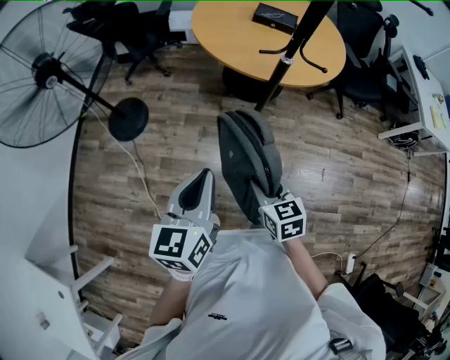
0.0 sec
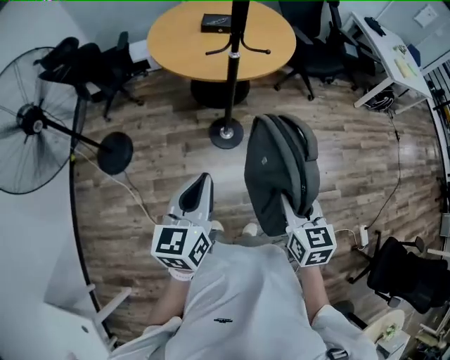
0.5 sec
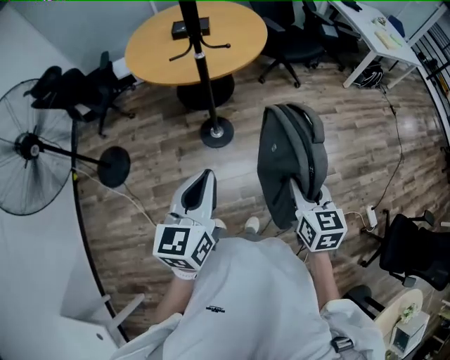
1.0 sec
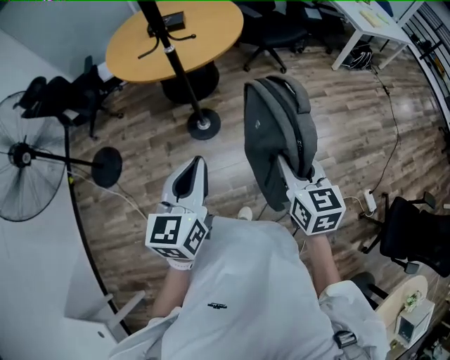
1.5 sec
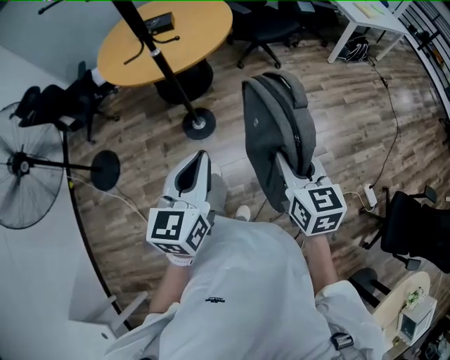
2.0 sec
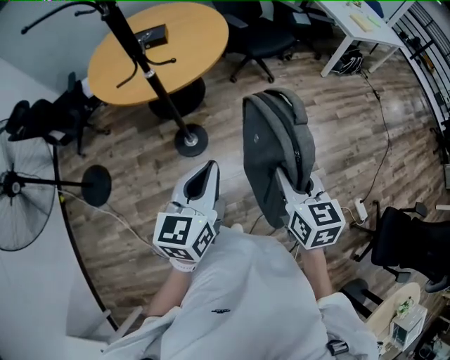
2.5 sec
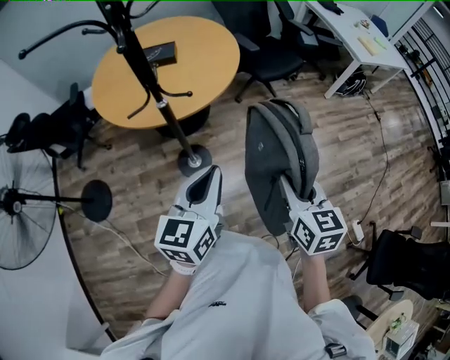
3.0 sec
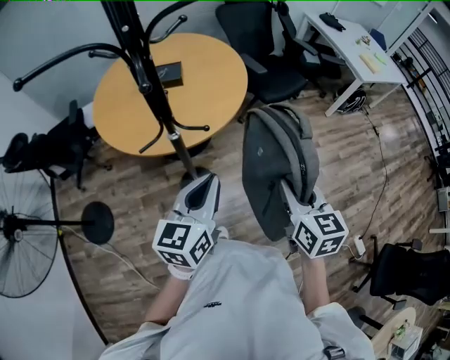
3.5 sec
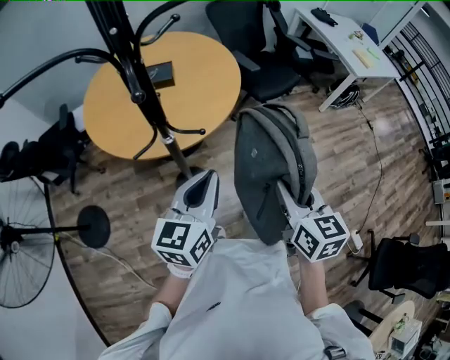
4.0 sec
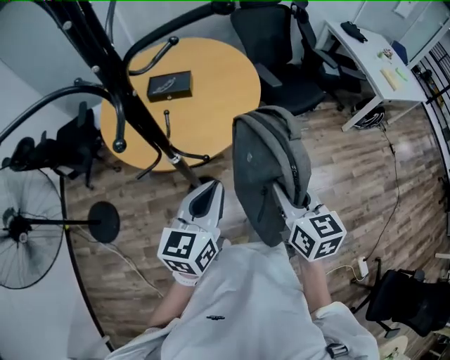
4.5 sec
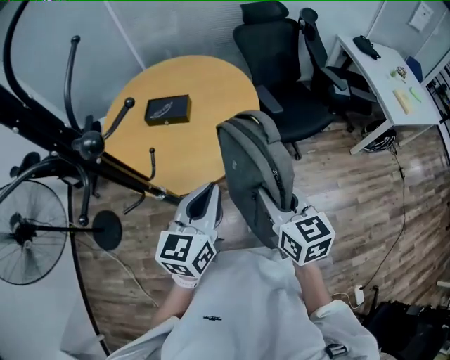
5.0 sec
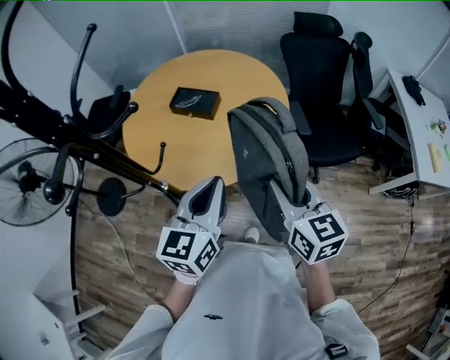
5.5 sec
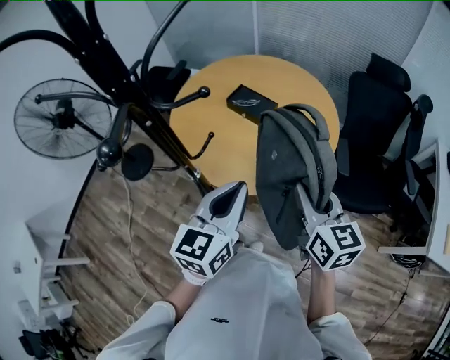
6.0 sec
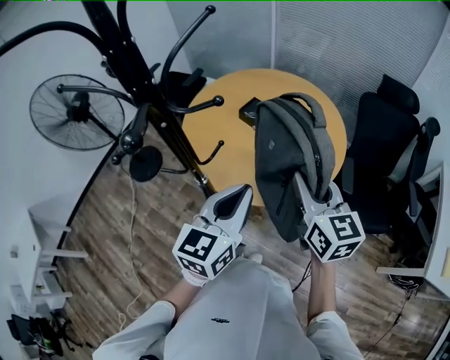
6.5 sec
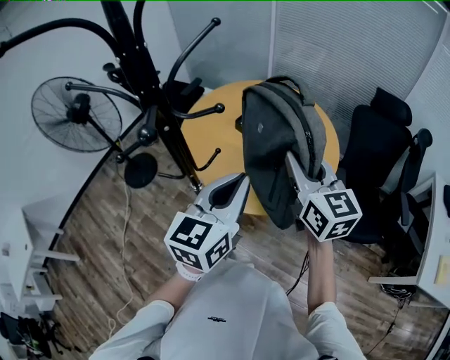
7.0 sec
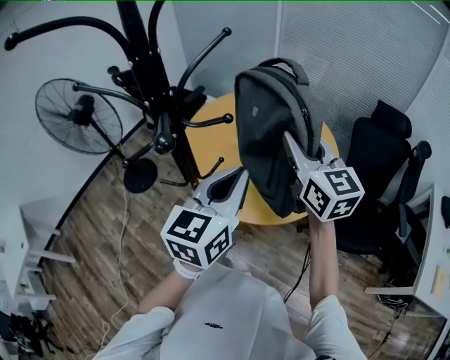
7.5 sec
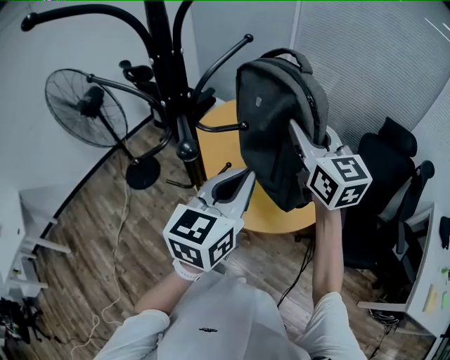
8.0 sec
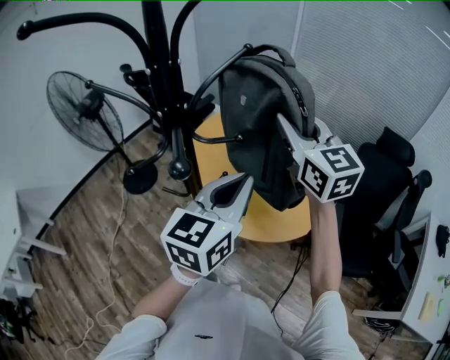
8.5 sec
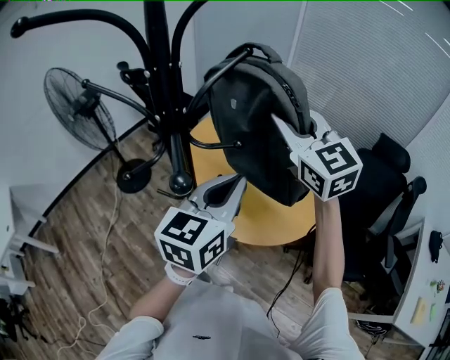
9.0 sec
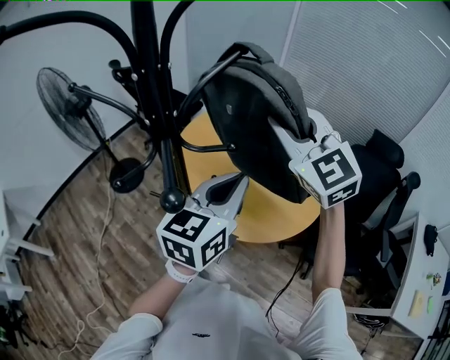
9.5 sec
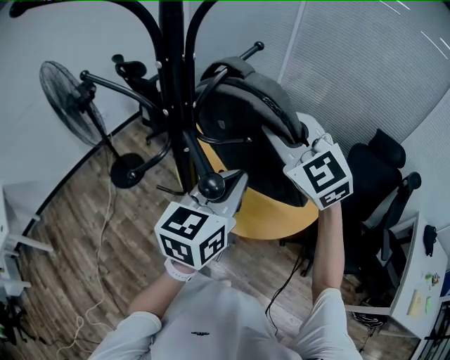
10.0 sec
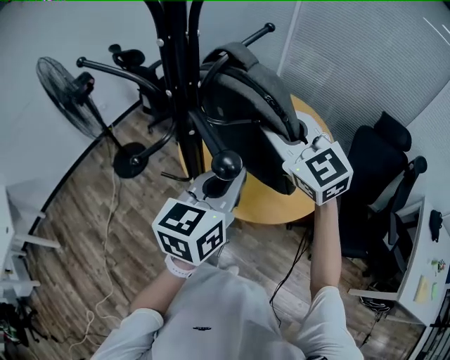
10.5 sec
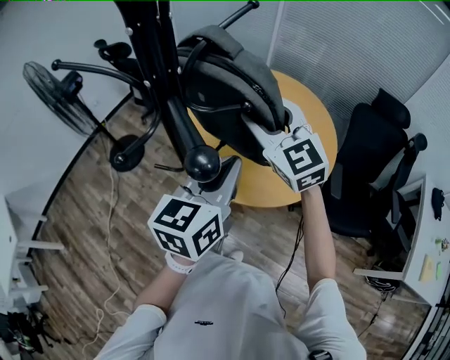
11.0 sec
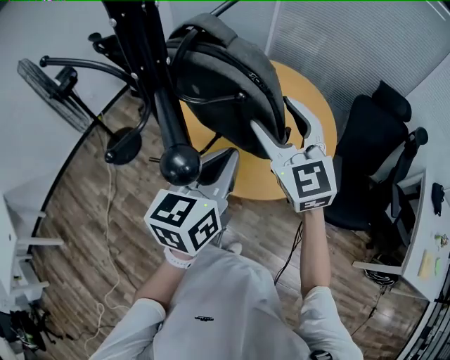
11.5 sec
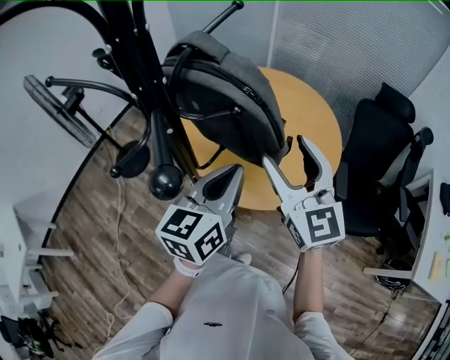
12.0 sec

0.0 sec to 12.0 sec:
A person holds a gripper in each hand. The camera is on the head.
0.0 sec to 2.0 sec: The right gripper changes place by about 35 cm, and changes its angle by roughly 30 degrees. Meanwhile the left gripper changes place by roughly 30 cm, and swivels approximately 30 degrees.
2.0 sec to 4.0 sec: The right gripper travels forward and to the left by about 30 cm. Meanwhile the left gripper moves forward, some 30 cm.
4.0 sec to 6.0 sec: The left gripper moves some 25 cm, and swivels approximately 40 degrees. The right gripper shifts by roughly 35 cm, and turns by approximately 50 degrees.
6.0 sec to 8.0 sec: The right gripper goes some 25 cm upward, forward and to the left, and swivels about 30 degrees, while the left gripper heads upward, covering about 10 cm.
8.0 sec to 10.0 sec: The right gripper shifts some 10 cm to the left, and turns by approximately 40 degrees.
10.0 sec to 12.0 sec: The right gripper heads downward, backward and to the right, covering about 15 cm, swivels some 40 degrees, and opens up; the left gripper heads downward, covering roughly 5 cm.

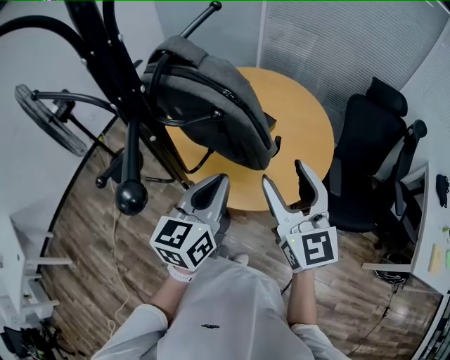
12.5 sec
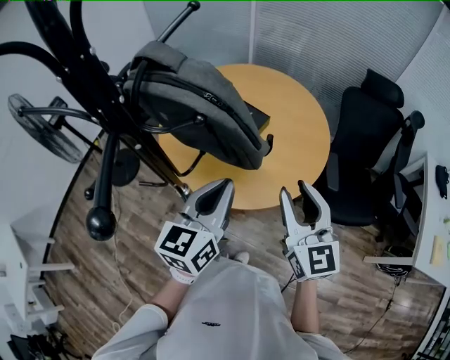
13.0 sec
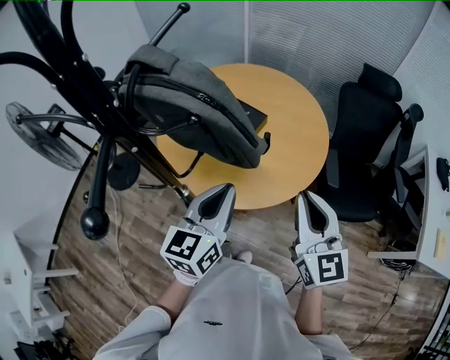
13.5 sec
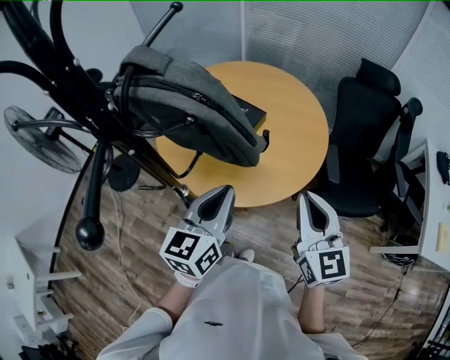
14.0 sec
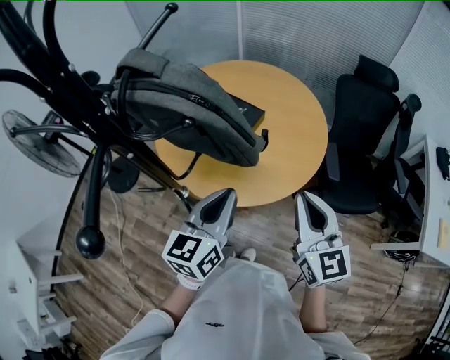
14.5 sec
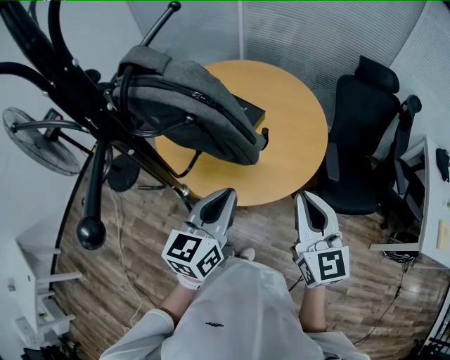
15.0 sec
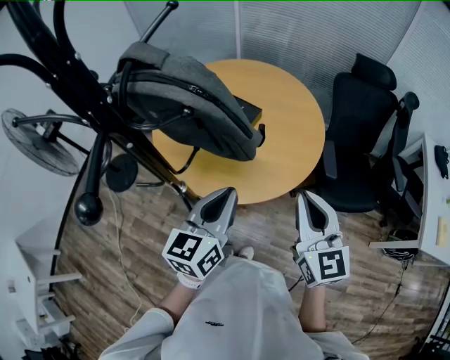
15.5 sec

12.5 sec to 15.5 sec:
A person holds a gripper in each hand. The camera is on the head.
12.5 sec to 14.0 sec: The right gripper travels to the right and downward by roughly 10 cm, and closes its fingers; the left gripper shifts by roughly 5 cm.
14.0 sec to 15.5 sec: The grippers stay close to where they were, moving slightly.

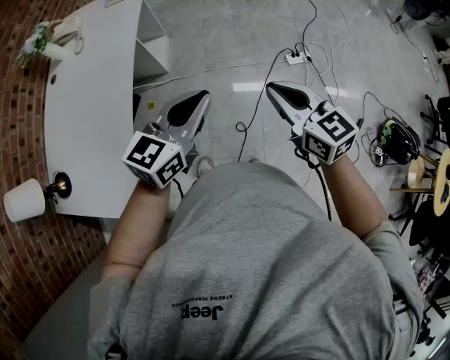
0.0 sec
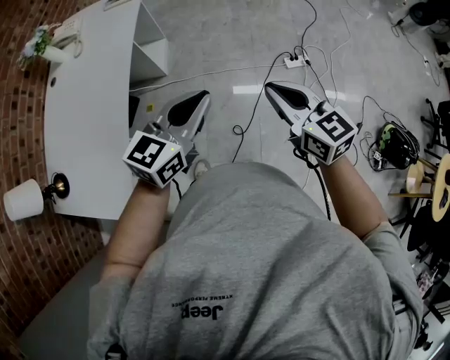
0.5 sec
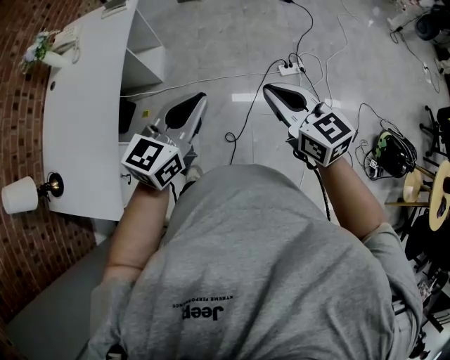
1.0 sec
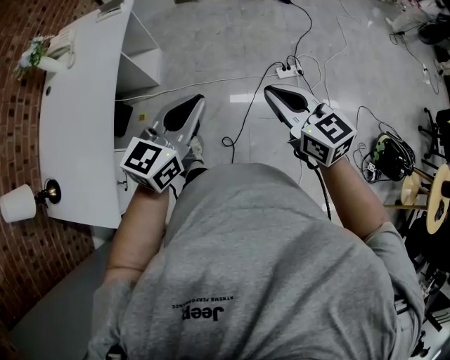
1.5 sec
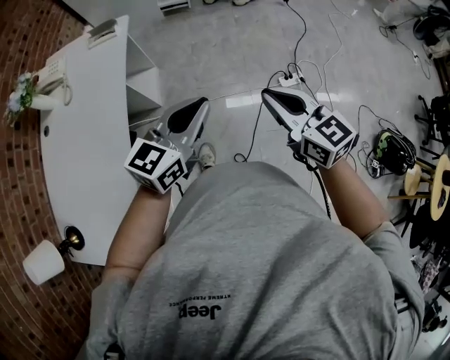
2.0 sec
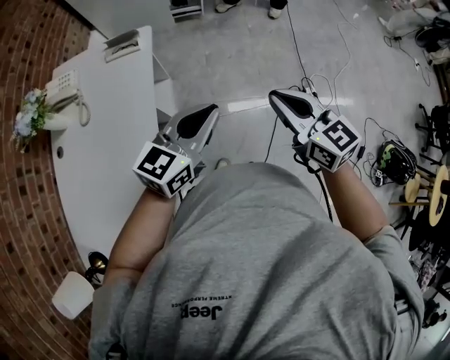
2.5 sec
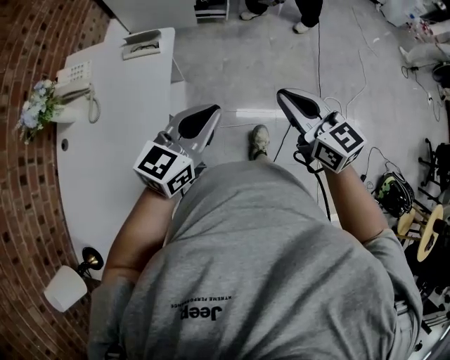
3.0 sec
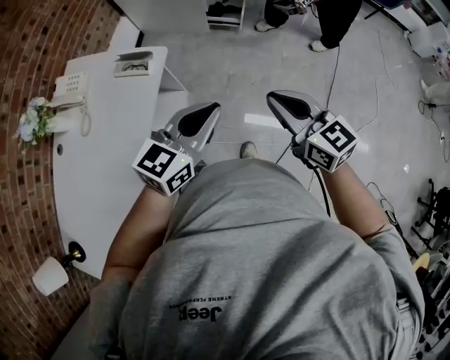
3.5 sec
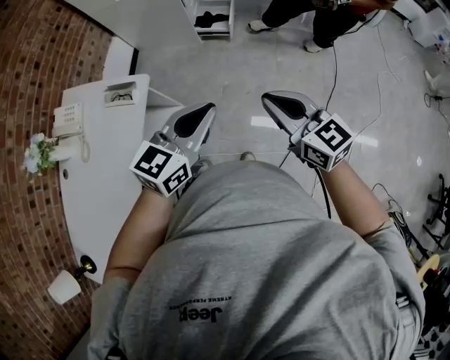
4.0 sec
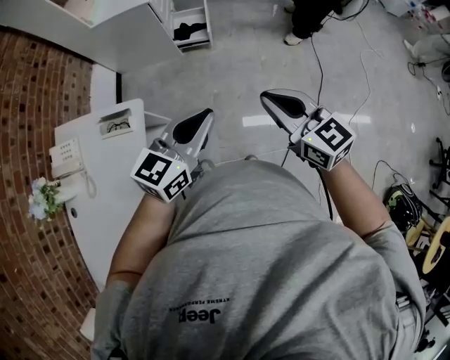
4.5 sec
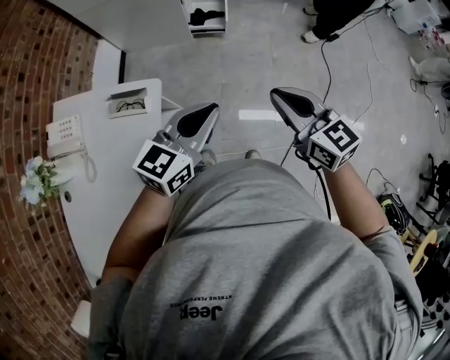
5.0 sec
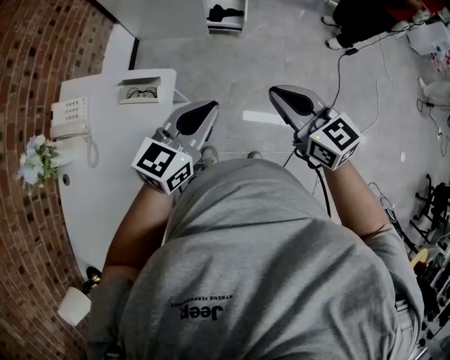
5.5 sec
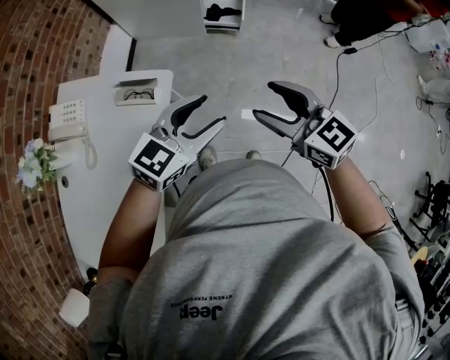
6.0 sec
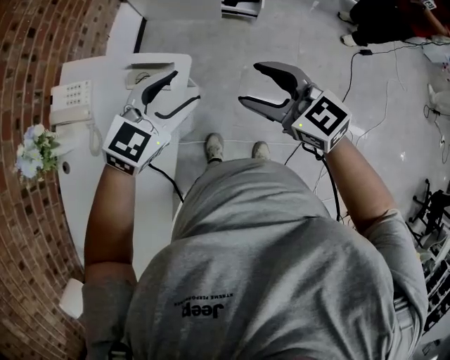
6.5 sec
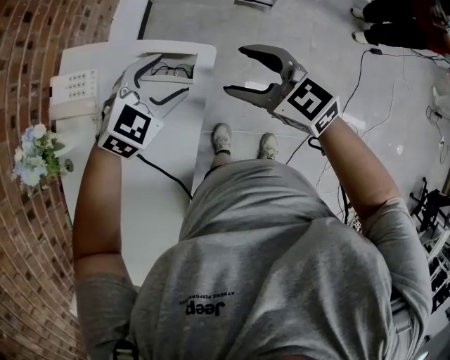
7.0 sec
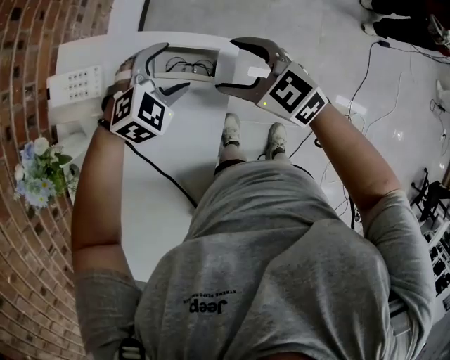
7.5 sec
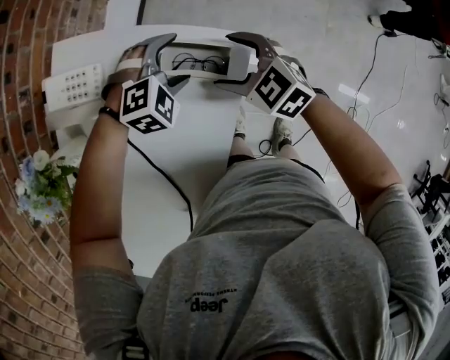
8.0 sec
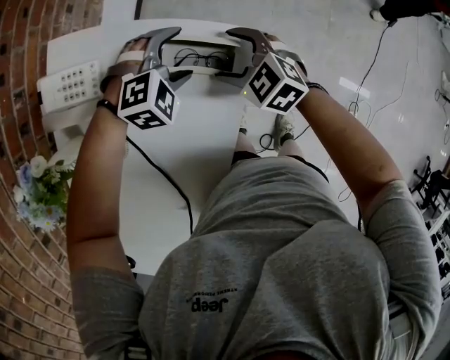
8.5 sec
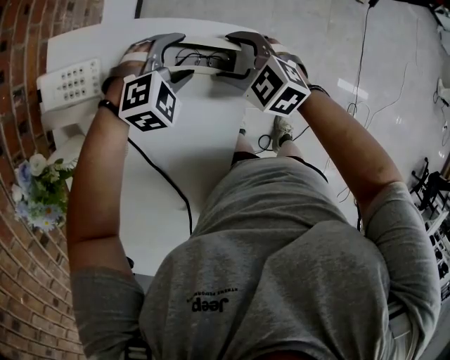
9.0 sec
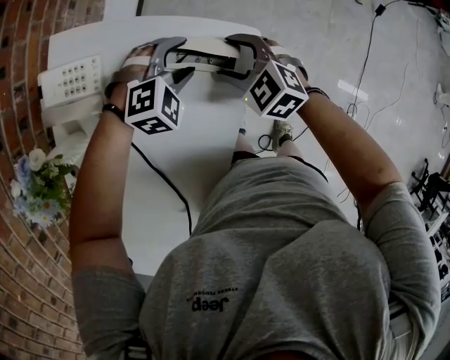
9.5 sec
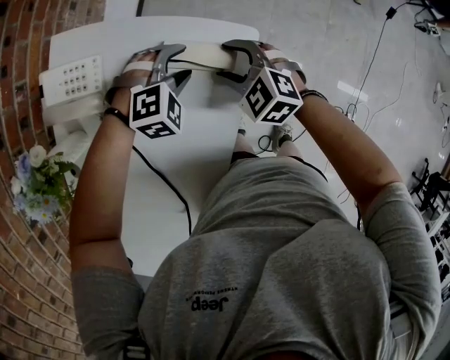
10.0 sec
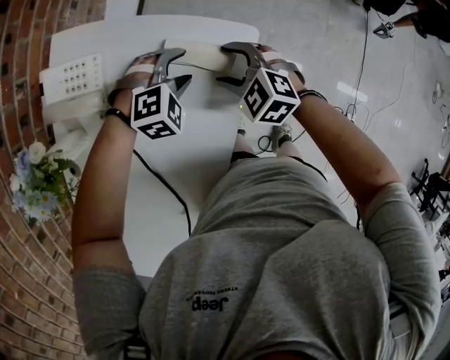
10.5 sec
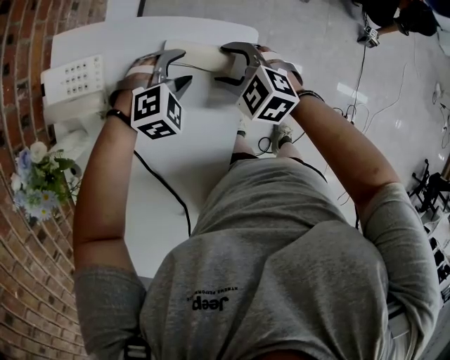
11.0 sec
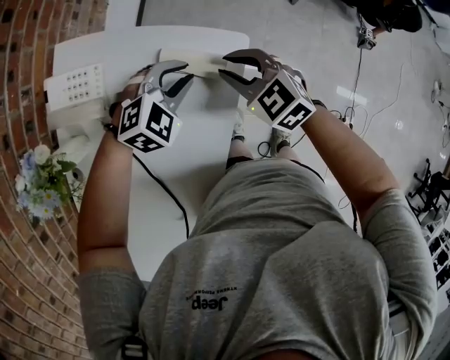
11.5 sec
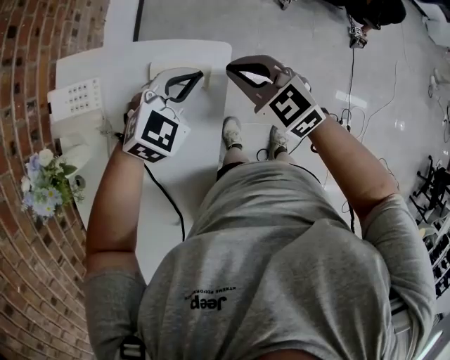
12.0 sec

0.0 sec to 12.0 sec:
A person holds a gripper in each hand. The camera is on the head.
0.0 sec to 2.0 sec: Both grippers move forward, roughly 20 cm.
2.0 sec to 4.0 sec: Both grippers are carried forward, some 40 cm.
4.0 sec to 6.0 sec: The grippers both shift to the left by about 15 cm. The left gripper opens; the right gripper opens.
6.0 sec to 8.0 sec: The two grippers go approximately 40 cm to the left, downward and forward. The right gripper changes its angle by approximately 30 degrees. The left gripper angles its fingers downward, by about 40 degrees, and opens its fingers.
8.0 sec to 10.0 sec: The left gripper closes up. Meanwhile the right gripper closes its fingers.
10.0 sec to 12.0 sec: The two grippers go roughly 15 cm upward and to the right. The left gripper changes its angle by some 30 degrees, and closes its fingers. The right gripper turns by some 20 degrees, and closes up.
